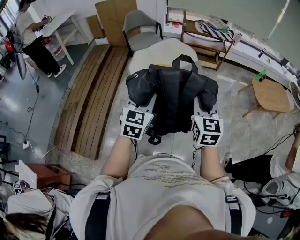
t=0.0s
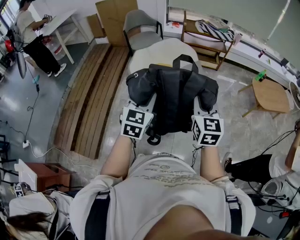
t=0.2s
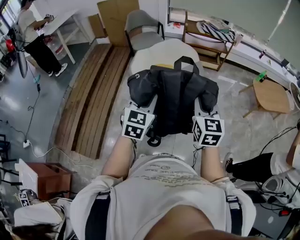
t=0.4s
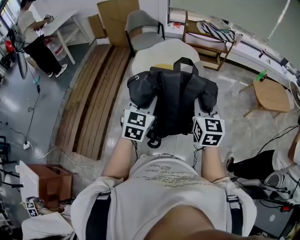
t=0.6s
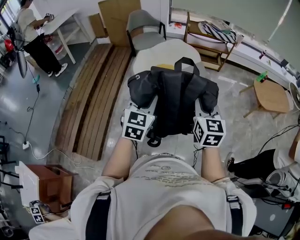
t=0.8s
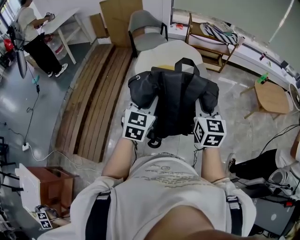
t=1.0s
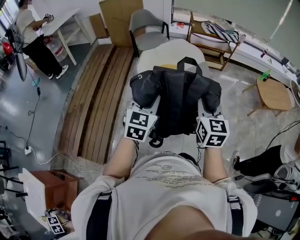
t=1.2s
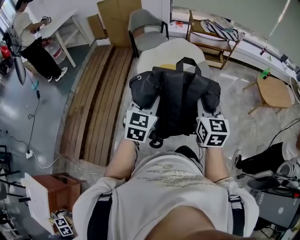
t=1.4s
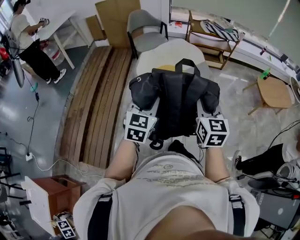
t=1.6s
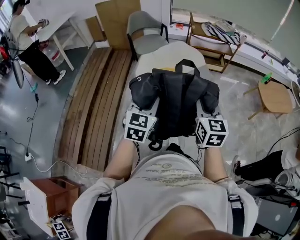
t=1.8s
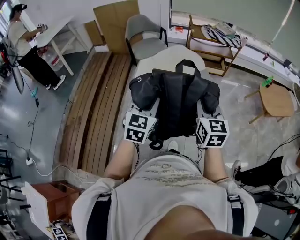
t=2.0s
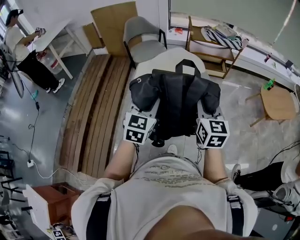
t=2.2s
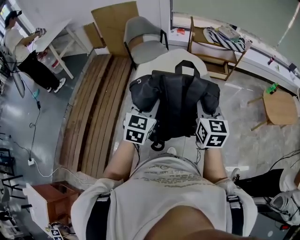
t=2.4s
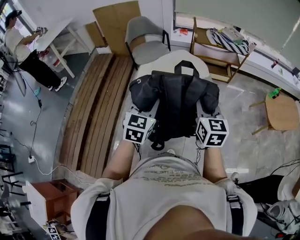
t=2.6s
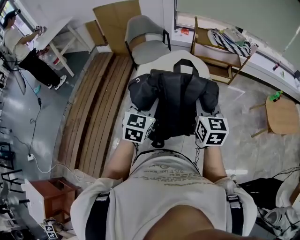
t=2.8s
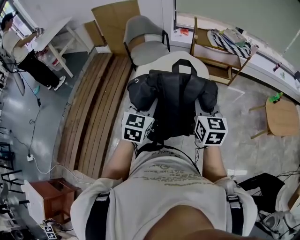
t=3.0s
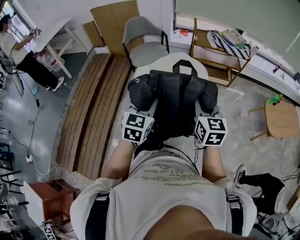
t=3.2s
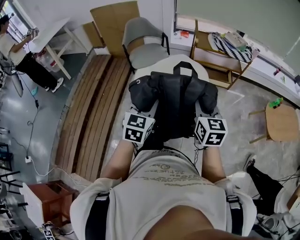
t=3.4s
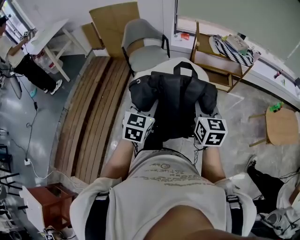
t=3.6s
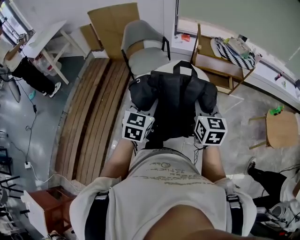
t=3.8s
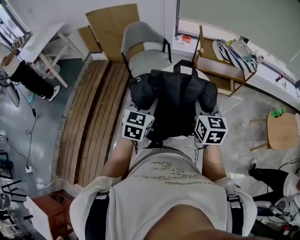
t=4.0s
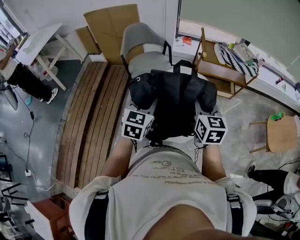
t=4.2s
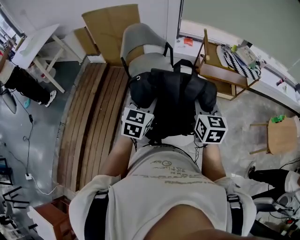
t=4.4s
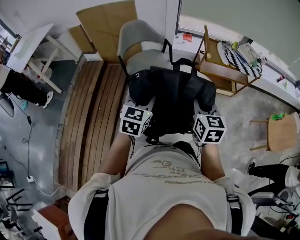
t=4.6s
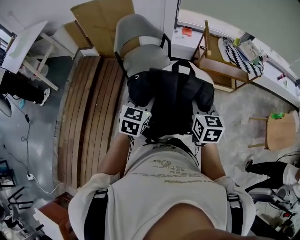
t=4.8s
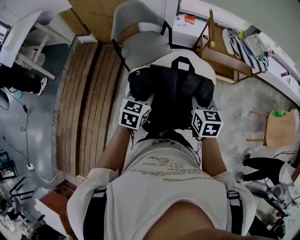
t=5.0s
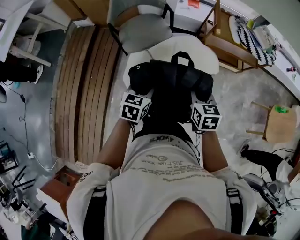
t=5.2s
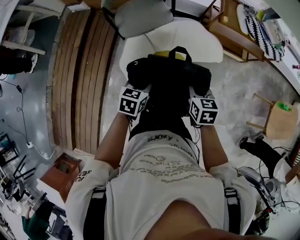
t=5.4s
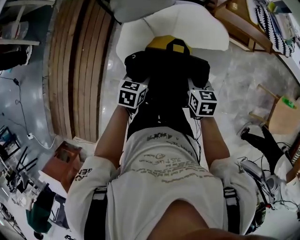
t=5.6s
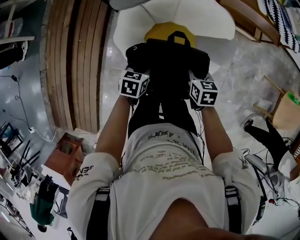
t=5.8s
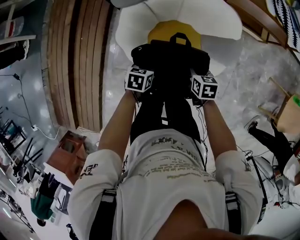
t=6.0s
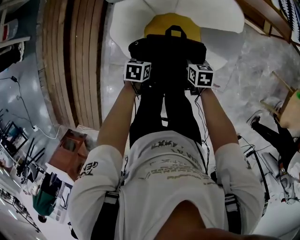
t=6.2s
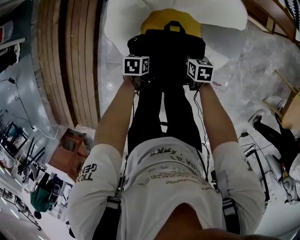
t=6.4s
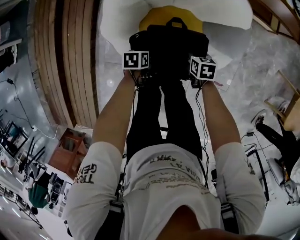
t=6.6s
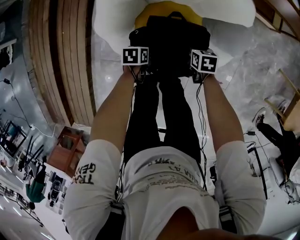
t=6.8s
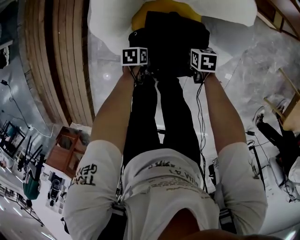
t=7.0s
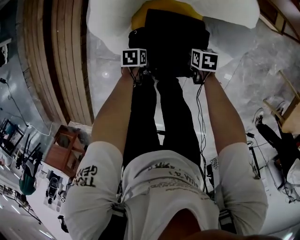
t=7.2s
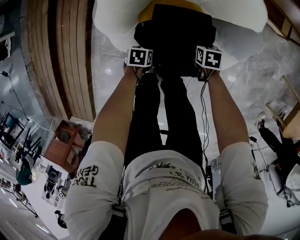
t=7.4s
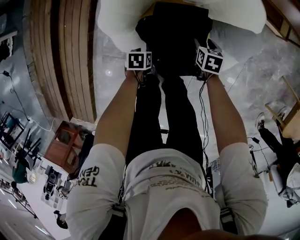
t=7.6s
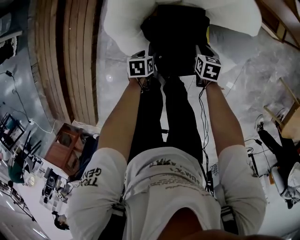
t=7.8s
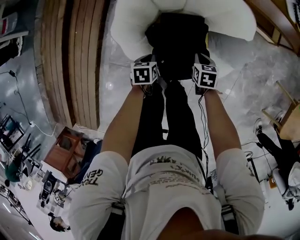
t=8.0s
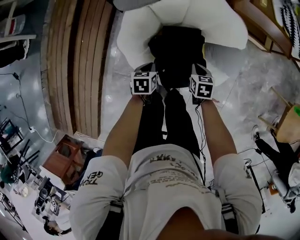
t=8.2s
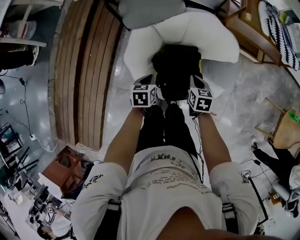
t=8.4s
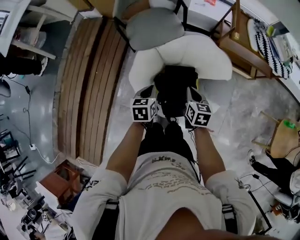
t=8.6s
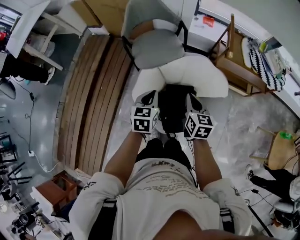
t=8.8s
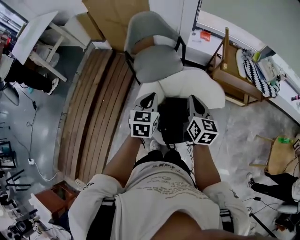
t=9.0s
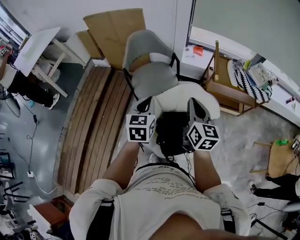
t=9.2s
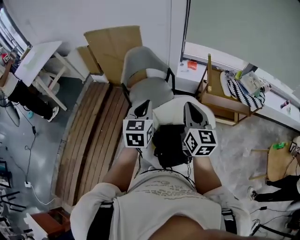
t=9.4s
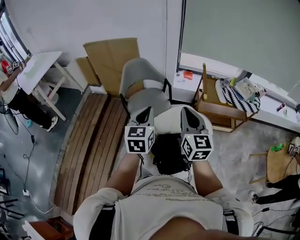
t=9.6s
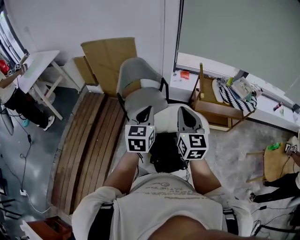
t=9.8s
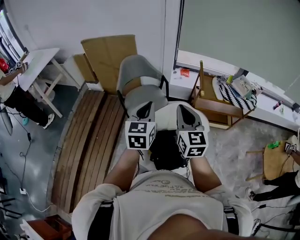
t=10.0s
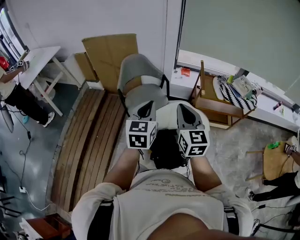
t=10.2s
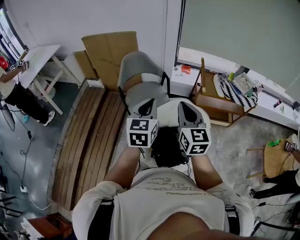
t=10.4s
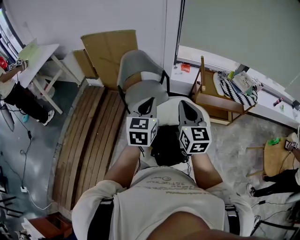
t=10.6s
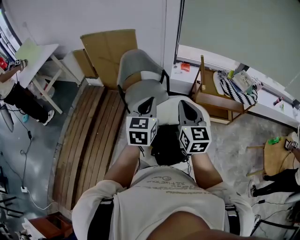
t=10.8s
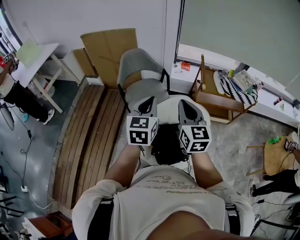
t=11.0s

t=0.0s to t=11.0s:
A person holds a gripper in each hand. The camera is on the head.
t=0.0s to t=1.6s: Both grippers move to the left, some 15 cm.
t=1.6s to t=3.2s: Both grippers move forward, about 30 cm.
t=3.2s to t=4.8s: The grippers both shift forward by about 30 cm.
t=4.8s to t=6.2s: The grippers both shift downward by roughly 40 cm. The right gripper tilts its fingers about 30 degrees downward; the left gripper tilts its fingers roughly 30 degrees downward.
t=6.2s to t=7.8s: Both grippers travel together downward, approximately 10 cm. The right gripper opens and closes again.
t=7.8s to t=9.4s: The two grippers go about 60 cm upward. The left gripper points its fingers approximately 50 degrees further upward, and closes its fingers; the right gripper points its fingers roughly 60 degrees further upward, and closes up.
t=9.4s to t=11.0s: The grippers stay close to where they were, moving slightly.

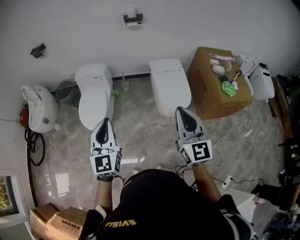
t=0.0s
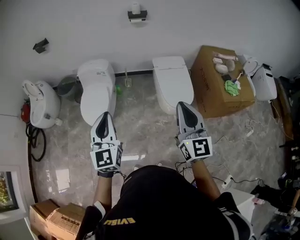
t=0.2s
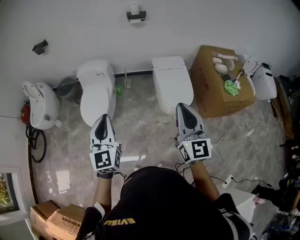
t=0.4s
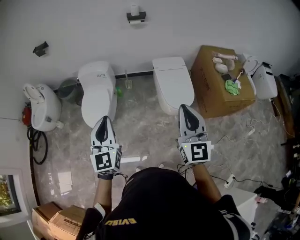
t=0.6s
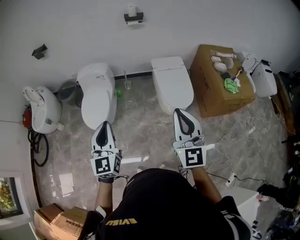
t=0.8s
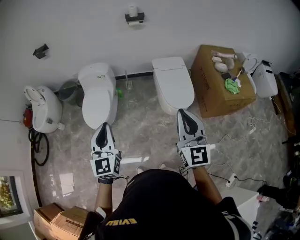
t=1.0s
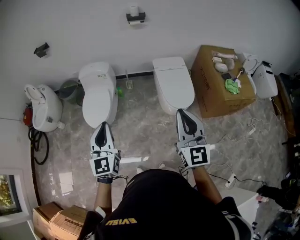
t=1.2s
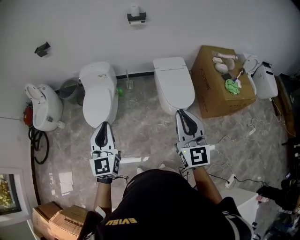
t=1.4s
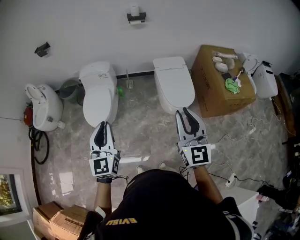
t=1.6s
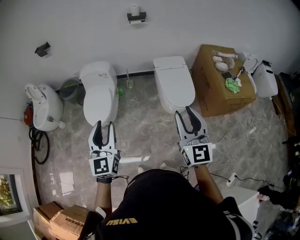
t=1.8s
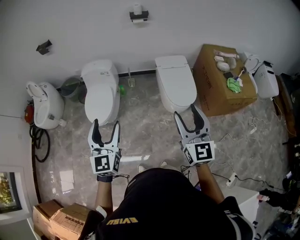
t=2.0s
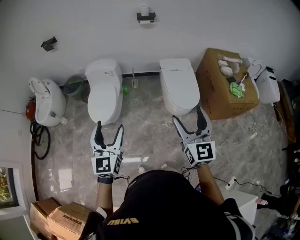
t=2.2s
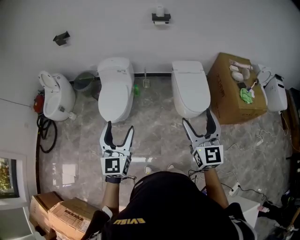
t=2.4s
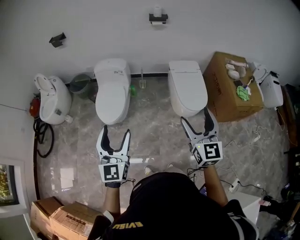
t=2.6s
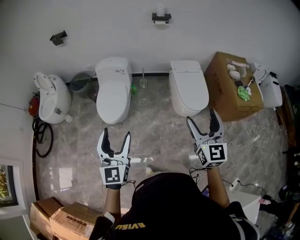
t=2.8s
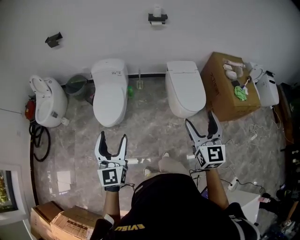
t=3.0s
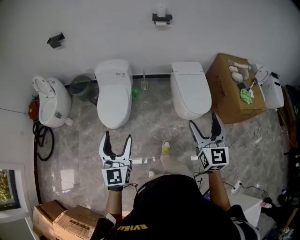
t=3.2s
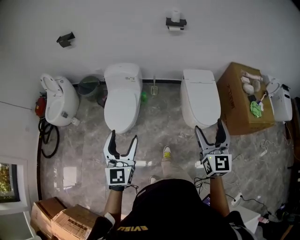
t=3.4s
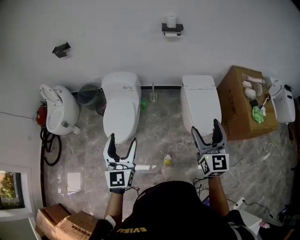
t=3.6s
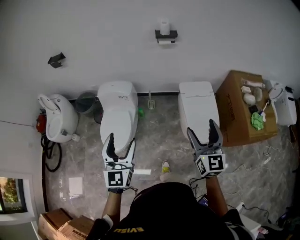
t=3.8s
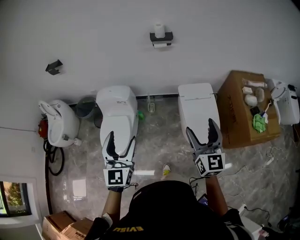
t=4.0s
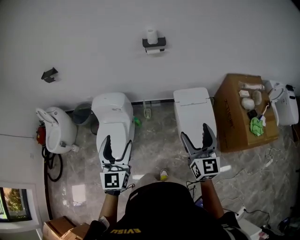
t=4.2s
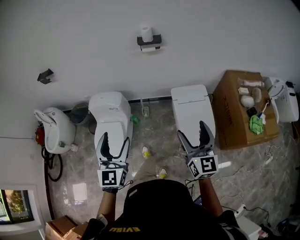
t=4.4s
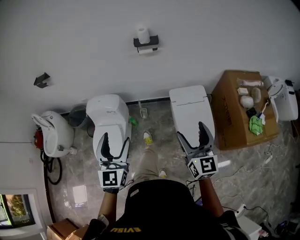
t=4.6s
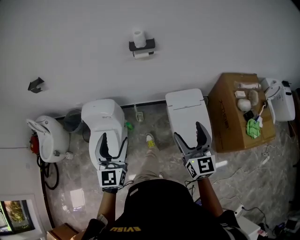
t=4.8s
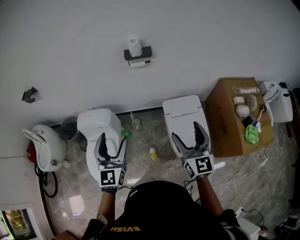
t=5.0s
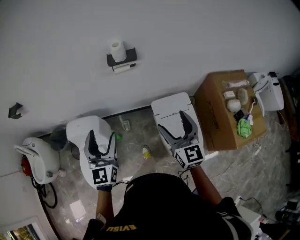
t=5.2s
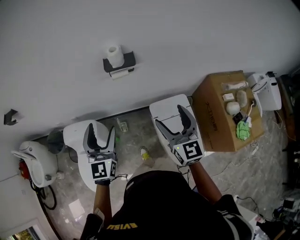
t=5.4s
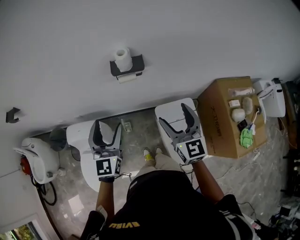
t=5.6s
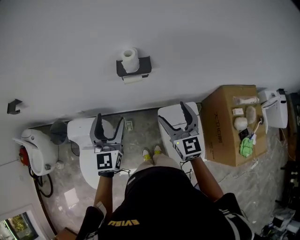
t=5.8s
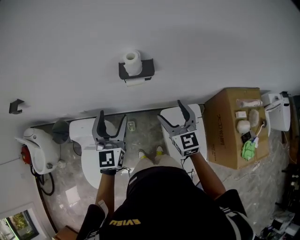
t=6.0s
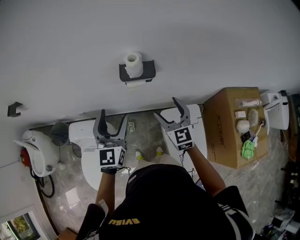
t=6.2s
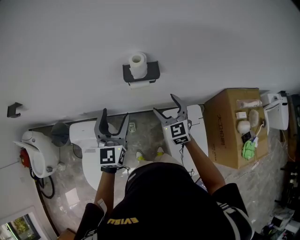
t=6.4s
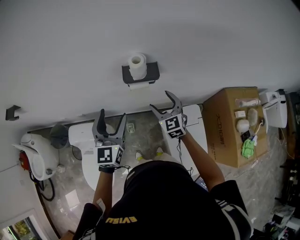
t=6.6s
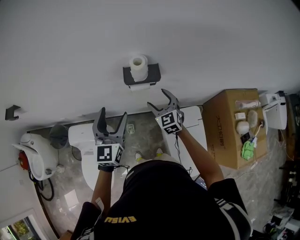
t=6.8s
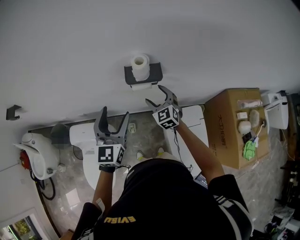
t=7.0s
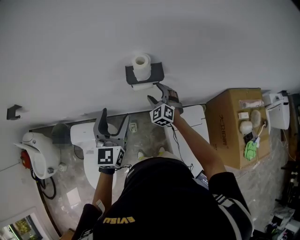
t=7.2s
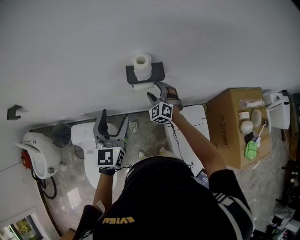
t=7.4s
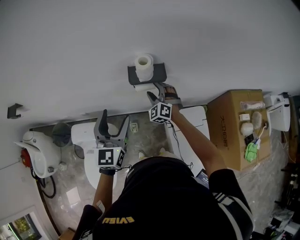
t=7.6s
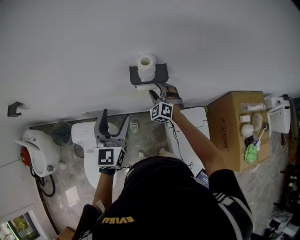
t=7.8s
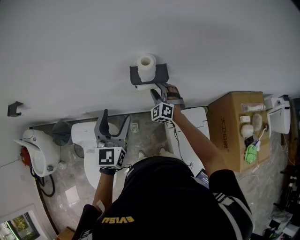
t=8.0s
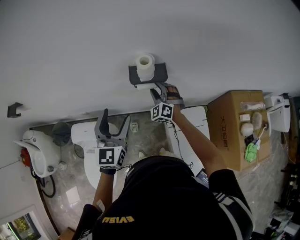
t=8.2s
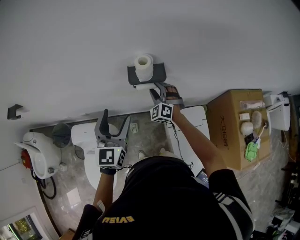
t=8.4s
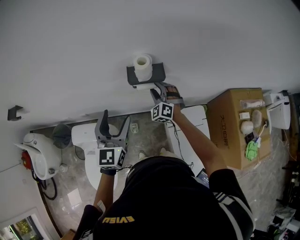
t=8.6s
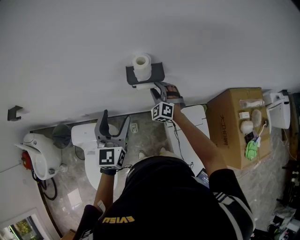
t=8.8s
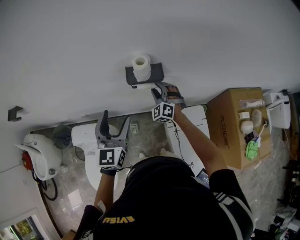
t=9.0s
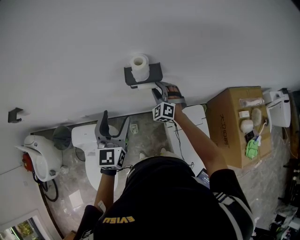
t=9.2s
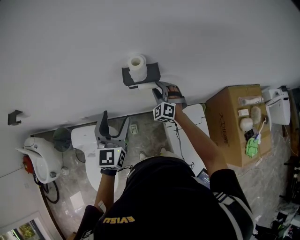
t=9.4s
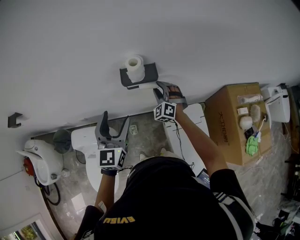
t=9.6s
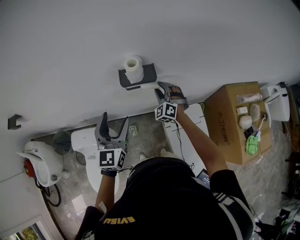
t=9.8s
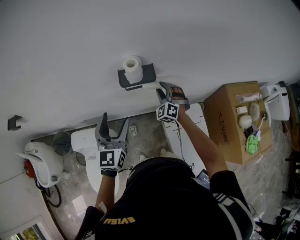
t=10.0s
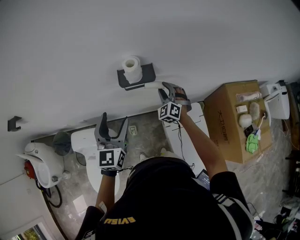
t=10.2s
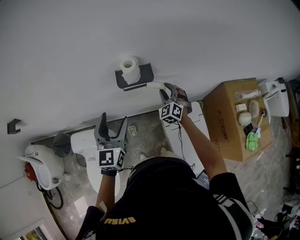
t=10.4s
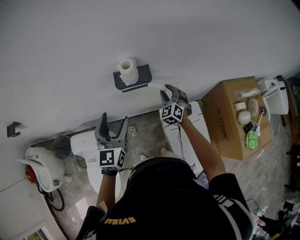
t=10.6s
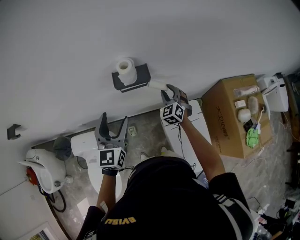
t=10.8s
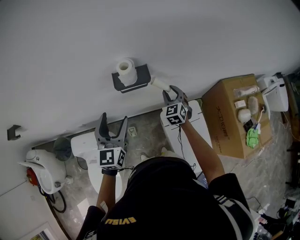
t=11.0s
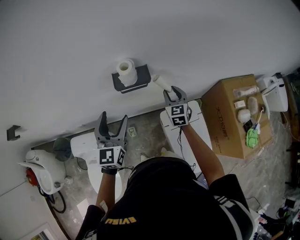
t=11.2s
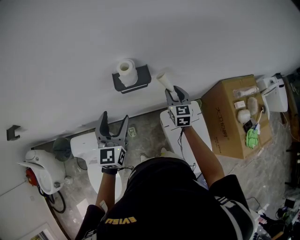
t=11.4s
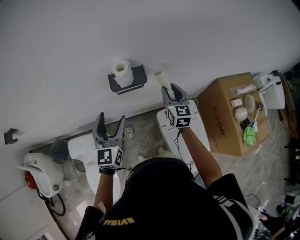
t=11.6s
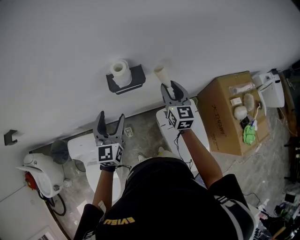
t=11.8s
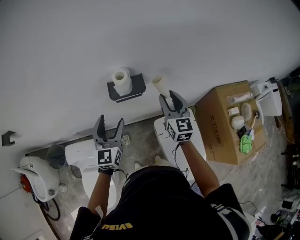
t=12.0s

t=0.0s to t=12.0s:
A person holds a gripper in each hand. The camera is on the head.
t=0.0s to t=1.6s: There are only small adjustments of the grippers.
t=1.6s to t=3.0s: The left gripper moves to the left, roughly 15 cm, and opens; the right gripper travels to the left by about 10 cm, and opens up.
t=3.0s to t=4.4s: The left gripper is displaced forward and to the right by some 40 cm, while the right gripper heads forward, covering about 35 cm.
t=4.4s to t=6.0s: The two grippers travel together, forward, about 40 cm.
t=6.0s to t=7.6s: The right gripper heads forward, downward and to the left, covering some 25 cm, and rotates around the line of its fingers by some 50 degrees, counterclockwise from behind; the left gripper moves forward, about 5 cm.
t=7.6s to t=9.0s: There are only small adjustments of the grippers.
t=9.0s to t=10.4s: The right gripper moves to the right, roughly 10 cm.
t=10.4s to t=12.0s: The left gripper moves about 5 cm. Meanwhile the right gripper heads upward, covering roughly 15 cm, and twists about 50 degrees clockwise, seen from behind.

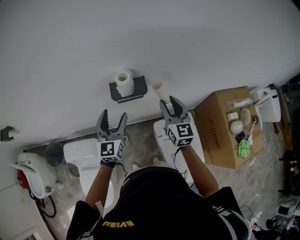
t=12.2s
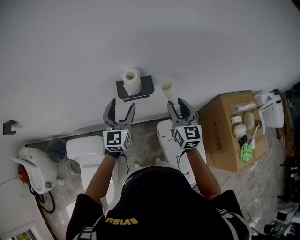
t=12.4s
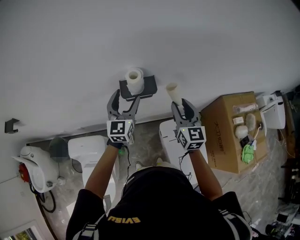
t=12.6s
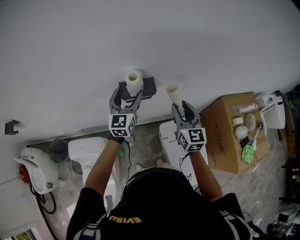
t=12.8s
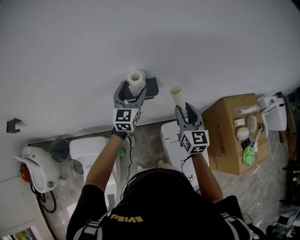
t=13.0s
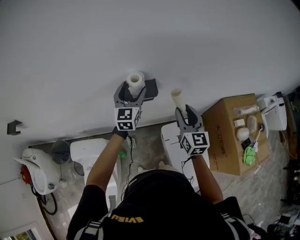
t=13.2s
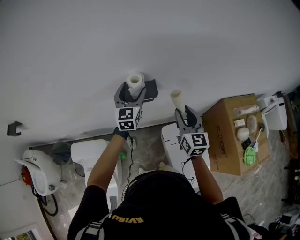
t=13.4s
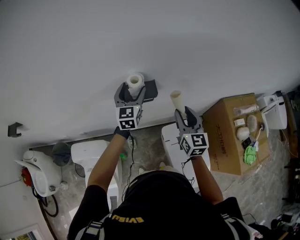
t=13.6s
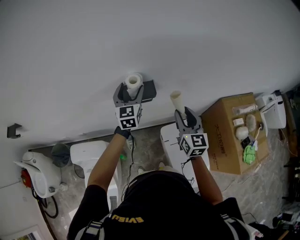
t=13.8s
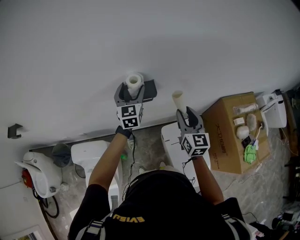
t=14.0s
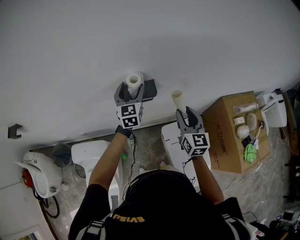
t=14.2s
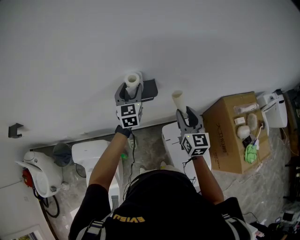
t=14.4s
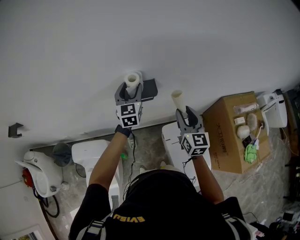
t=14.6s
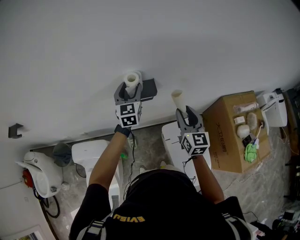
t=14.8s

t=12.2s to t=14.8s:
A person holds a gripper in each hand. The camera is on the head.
t=12.2s to t=13.4s: The left gripper heads forward, covering approximately 10 cm.
t=13.4s to t=14.8s: There are only small adjustments of the grippers.
